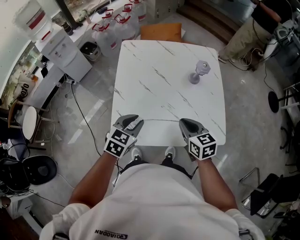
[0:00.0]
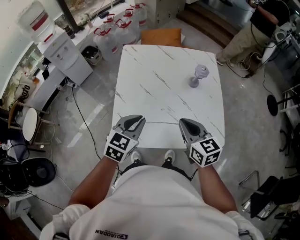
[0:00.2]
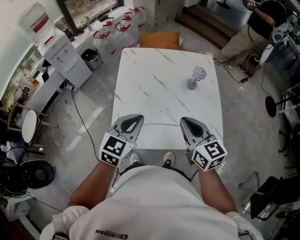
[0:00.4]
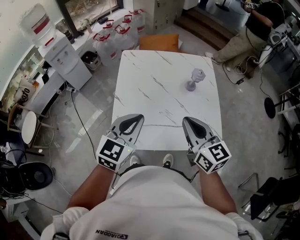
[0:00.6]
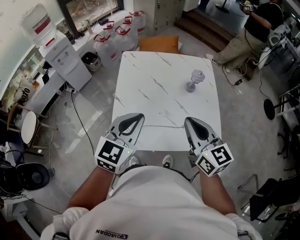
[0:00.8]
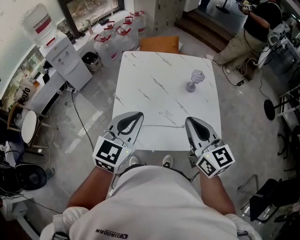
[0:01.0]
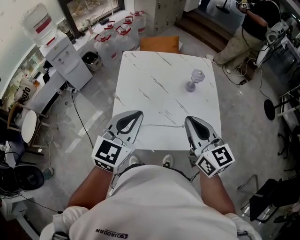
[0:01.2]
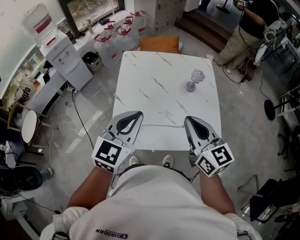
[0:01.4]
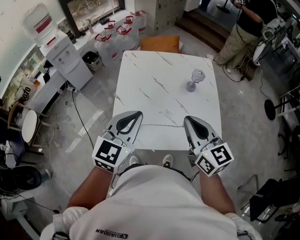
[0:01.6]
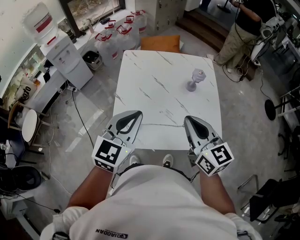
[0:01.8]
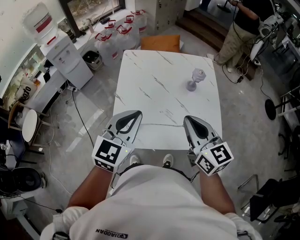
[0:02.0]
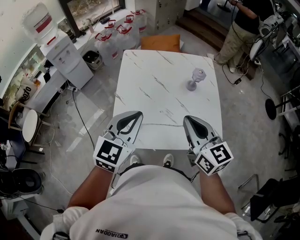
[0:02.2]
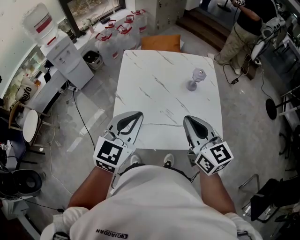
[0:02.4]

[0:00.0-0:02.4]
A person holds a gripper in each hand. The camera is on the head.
0:00.0 to 0:01.2: The grippers both shift upward by roughly 20 cm. The left gripper swivels roughly 30 degrees, and closes up; the right gripper rotates roughly 30 degrees.
0:01.2 to 0:02.4: There are only small adjustments of the grippers.

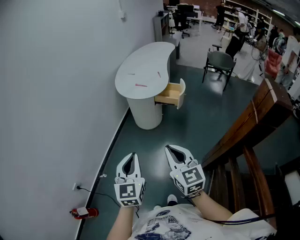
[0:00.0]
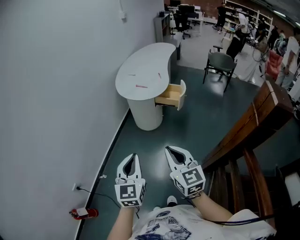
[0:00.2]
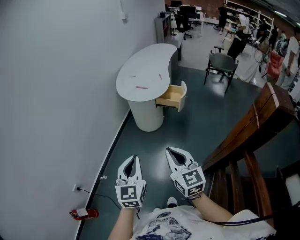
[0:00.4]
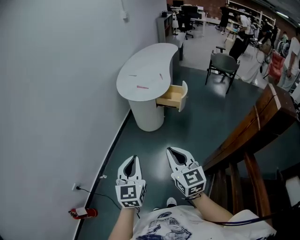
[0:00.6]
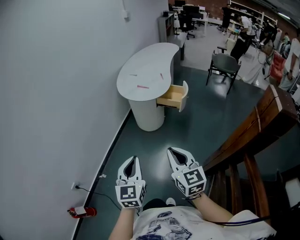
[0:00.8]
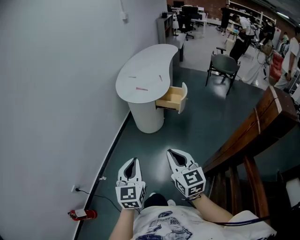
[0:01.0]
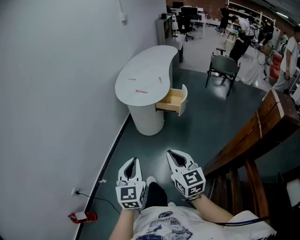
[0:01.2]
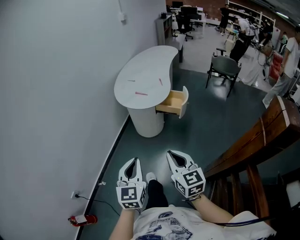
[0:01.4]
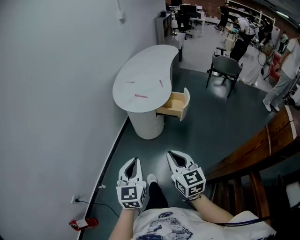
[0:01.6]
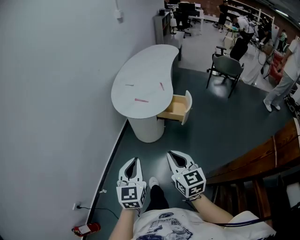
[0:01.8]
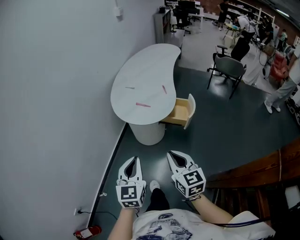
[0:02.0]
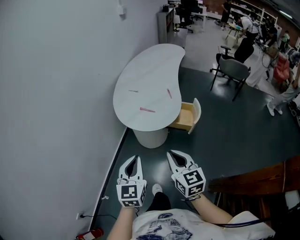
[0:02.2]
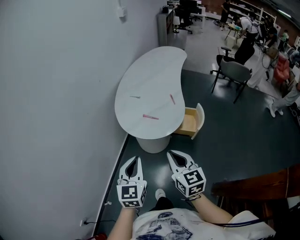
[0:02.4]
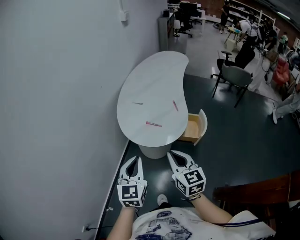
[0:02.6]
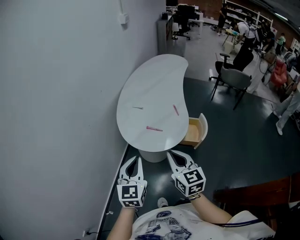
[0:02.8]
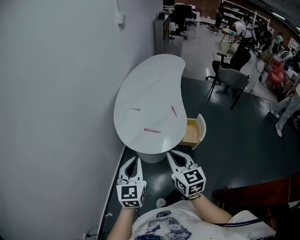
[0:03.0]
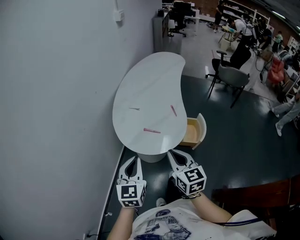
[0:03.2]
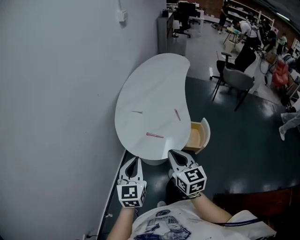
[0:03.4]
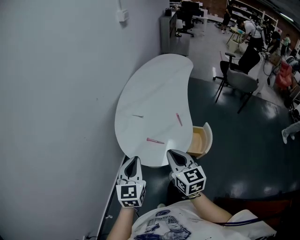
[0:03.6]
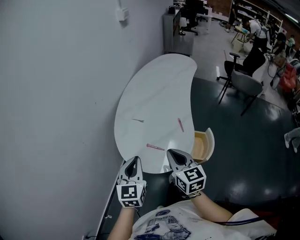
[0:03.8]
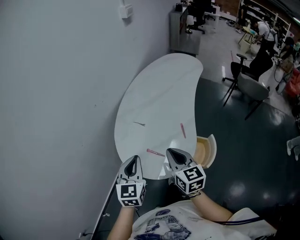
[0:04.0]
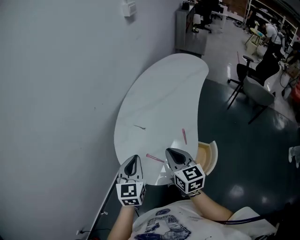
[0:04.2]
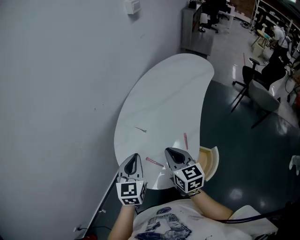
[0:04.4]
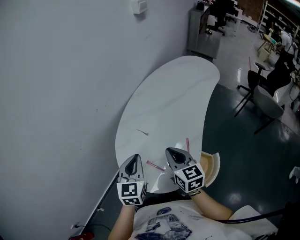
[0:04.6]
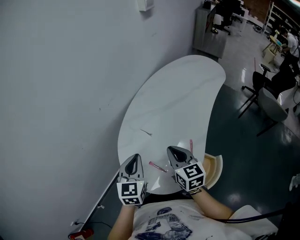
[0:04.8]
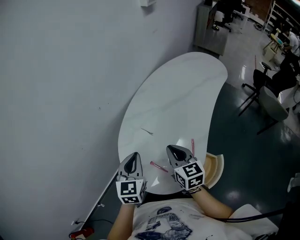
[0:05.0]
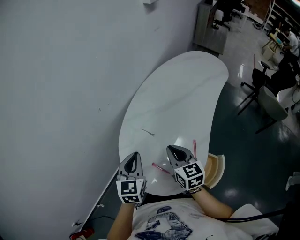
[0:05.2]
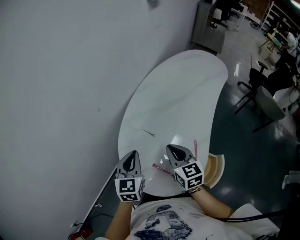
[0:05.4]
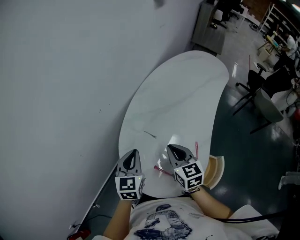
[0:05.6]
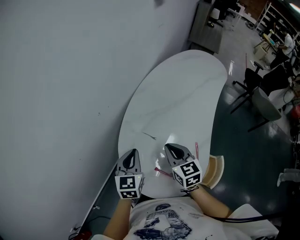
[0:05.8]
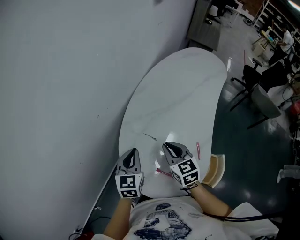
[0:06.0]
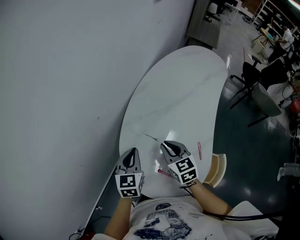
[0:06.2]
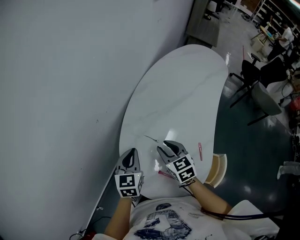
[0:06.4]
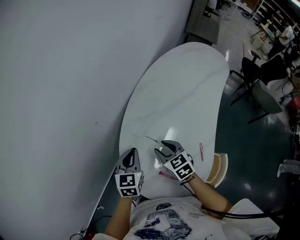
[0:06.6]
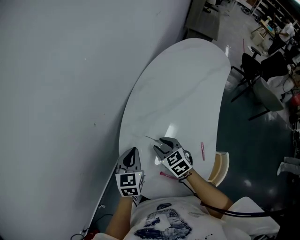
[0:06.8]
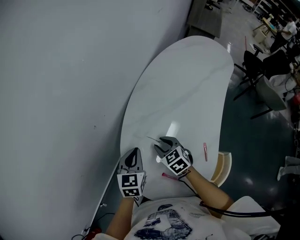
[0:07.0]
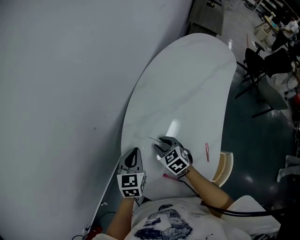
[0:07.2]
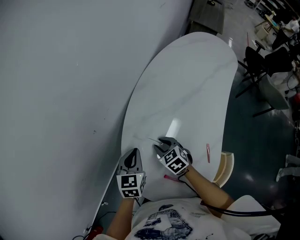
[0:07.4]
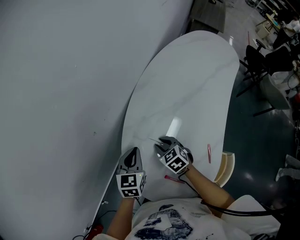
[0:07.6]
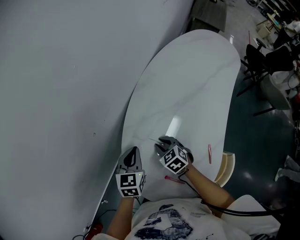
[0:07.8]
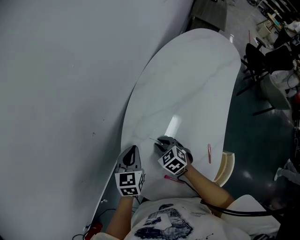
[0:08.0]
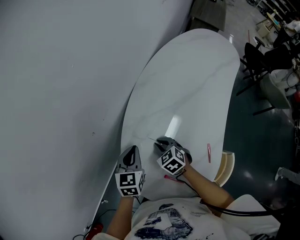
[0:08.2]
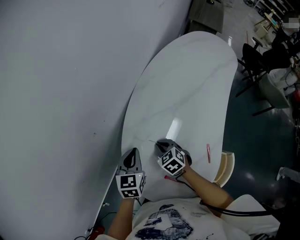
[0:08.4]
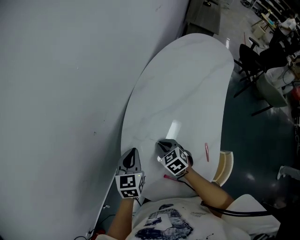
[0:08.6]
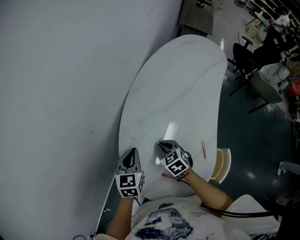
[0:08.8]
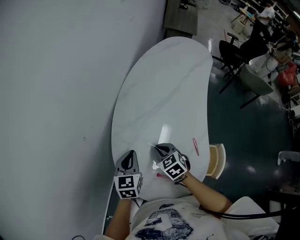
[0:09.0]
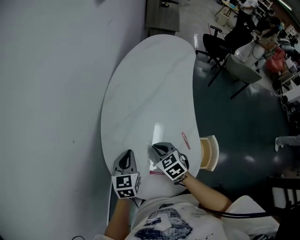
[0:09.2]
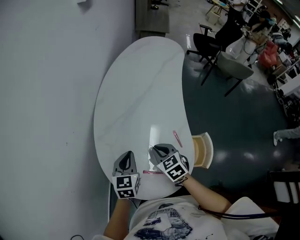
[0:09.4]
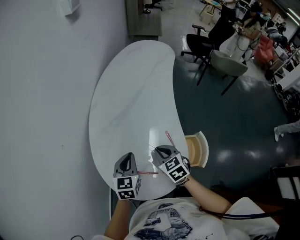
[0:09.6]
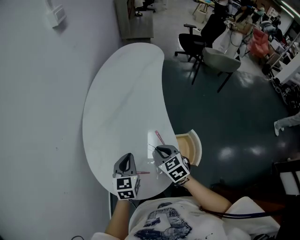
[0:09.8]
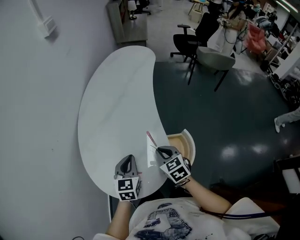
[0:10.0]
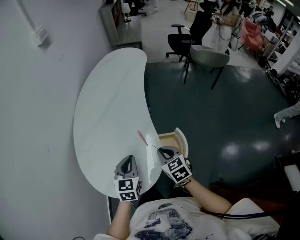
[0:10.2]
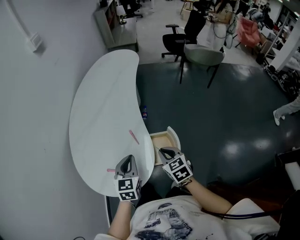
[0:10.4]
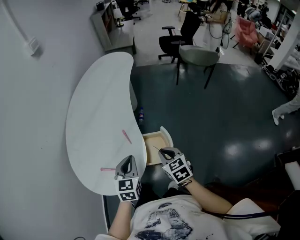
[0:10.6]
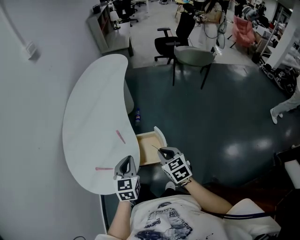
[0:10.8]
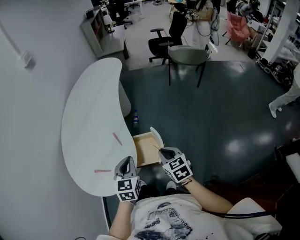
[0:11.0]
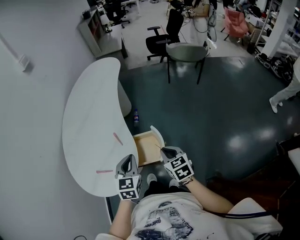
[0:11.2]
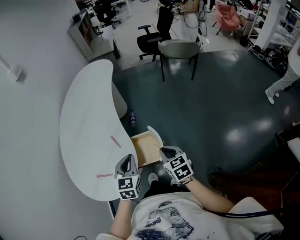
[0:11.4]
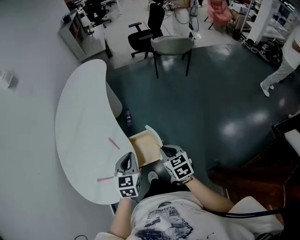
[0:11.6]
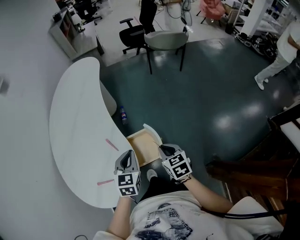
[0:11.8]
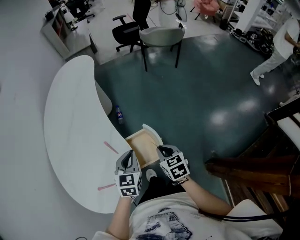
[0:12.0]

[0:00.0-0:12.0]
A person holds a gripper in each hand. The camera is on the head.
0:00.0 to 0:01.6: The grippers both shift forward by about 15 cm.
0:01.6 to 0:03.0: Both grippers move forward, about 35 cm.
0:03.0 to 0:04.4: Both grippers travel together forward, roughly 25 cm.
0:04.4 to 0:06.0: The right gripper heads forward, to the left and downward, covering about 15 cm, while the left gripper heads forward, downward and to the left, covering approximately 20 cm.
0:06.0 to 0:07.6: The left gripper is displaced downward and forward by approximately 10 cm. Meanwhile the right gripper heads downward and forward, covering approximately 20 cm, turns by approximately 30 degrees, and opens up.
0:07.6 to 0:09.0: The left gripper changes place by approximately 5 cm, while the right gripper moves upward and backward, roughly 10 cm, and closes up.
0:09.0 to 0:10.4: The two grippers go some 35 cm to the right and backward. The right gripper changes its angle by roughly 30 degrees.
0:10.4 to 0:12.0: The grippers both shift to the right and downward by approximately 15 cm. The right gripper turns by some 30 degrees. Meanwhile the left gripper changes its angle by approximately 20 degrees.

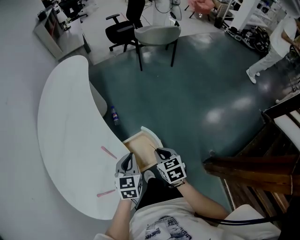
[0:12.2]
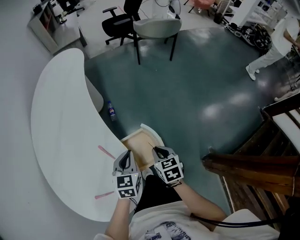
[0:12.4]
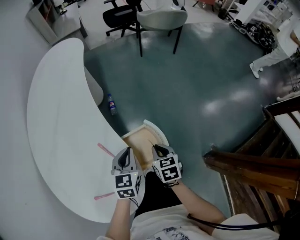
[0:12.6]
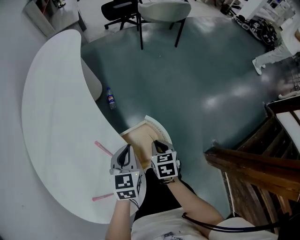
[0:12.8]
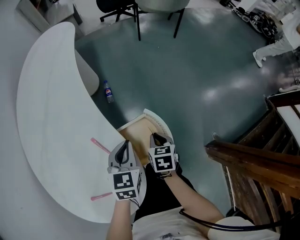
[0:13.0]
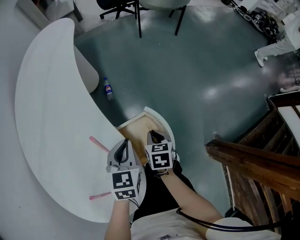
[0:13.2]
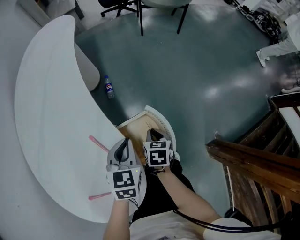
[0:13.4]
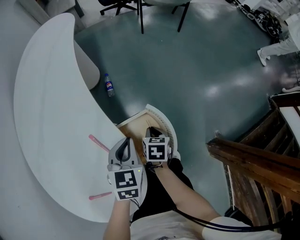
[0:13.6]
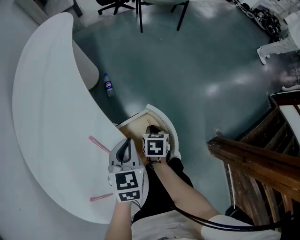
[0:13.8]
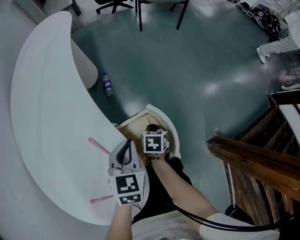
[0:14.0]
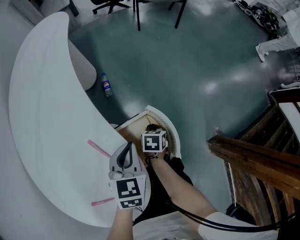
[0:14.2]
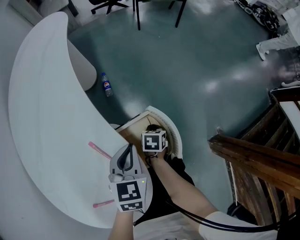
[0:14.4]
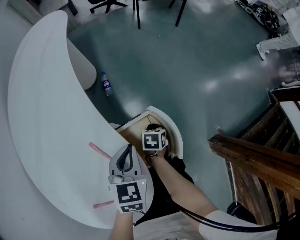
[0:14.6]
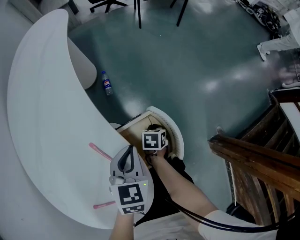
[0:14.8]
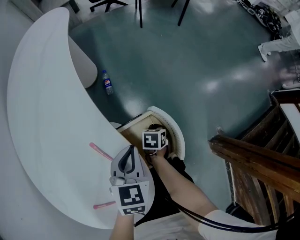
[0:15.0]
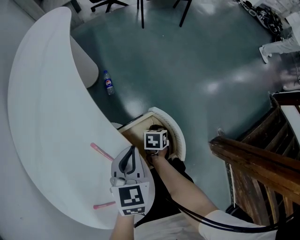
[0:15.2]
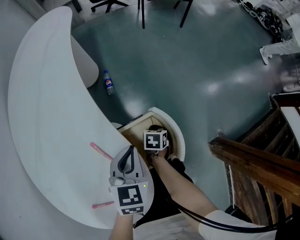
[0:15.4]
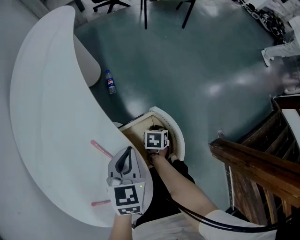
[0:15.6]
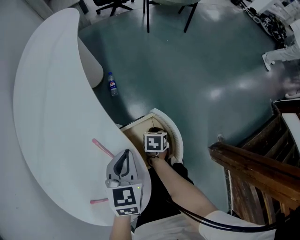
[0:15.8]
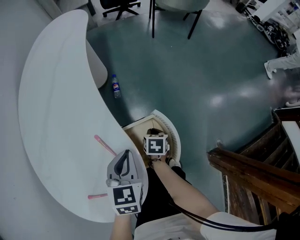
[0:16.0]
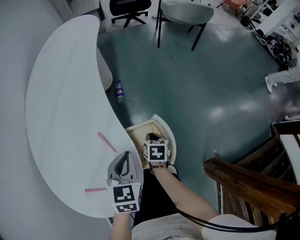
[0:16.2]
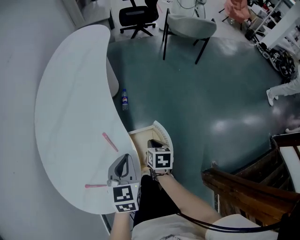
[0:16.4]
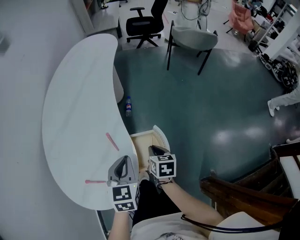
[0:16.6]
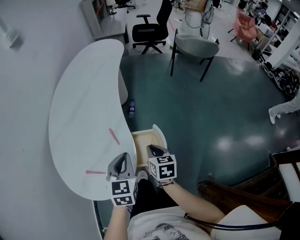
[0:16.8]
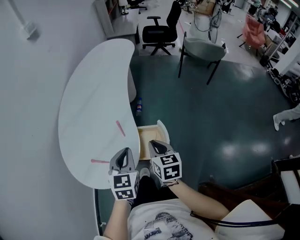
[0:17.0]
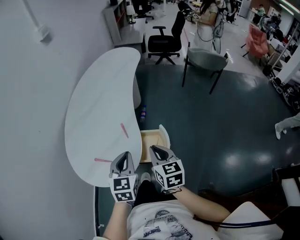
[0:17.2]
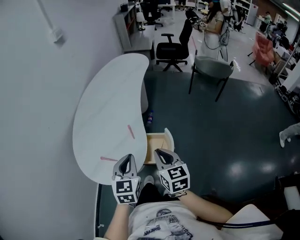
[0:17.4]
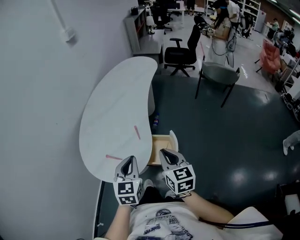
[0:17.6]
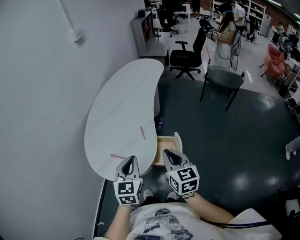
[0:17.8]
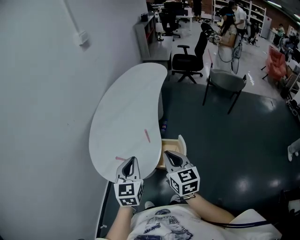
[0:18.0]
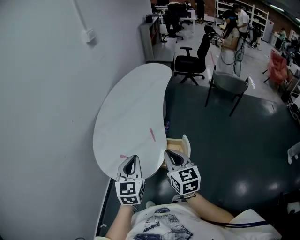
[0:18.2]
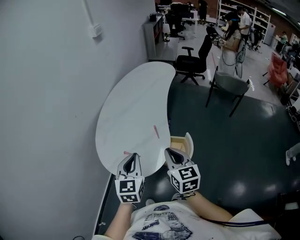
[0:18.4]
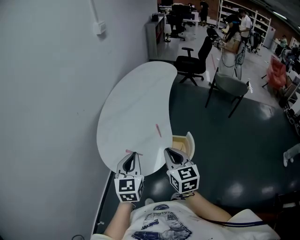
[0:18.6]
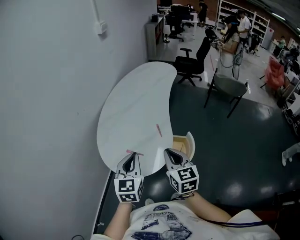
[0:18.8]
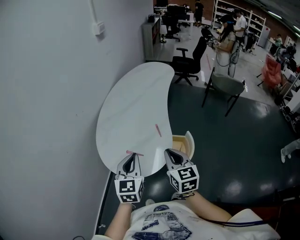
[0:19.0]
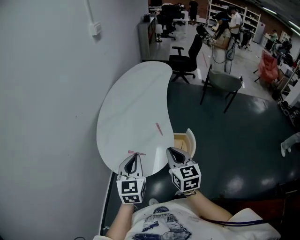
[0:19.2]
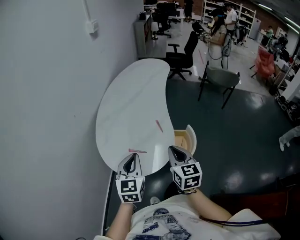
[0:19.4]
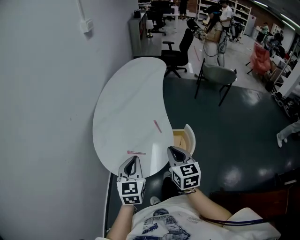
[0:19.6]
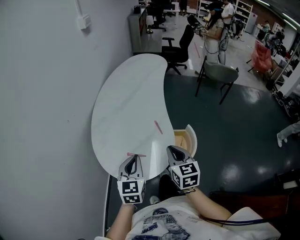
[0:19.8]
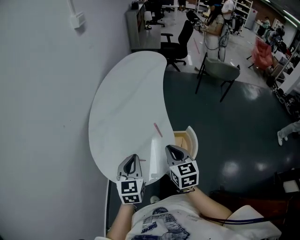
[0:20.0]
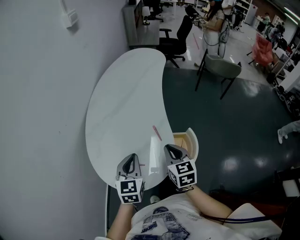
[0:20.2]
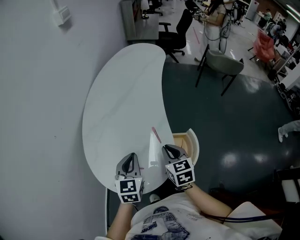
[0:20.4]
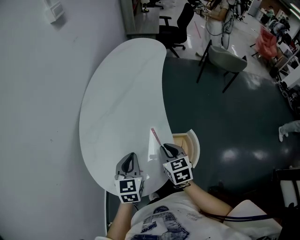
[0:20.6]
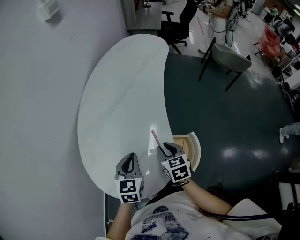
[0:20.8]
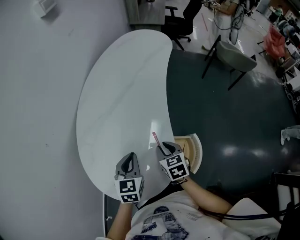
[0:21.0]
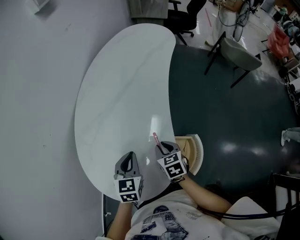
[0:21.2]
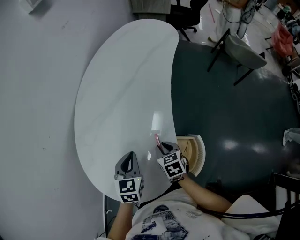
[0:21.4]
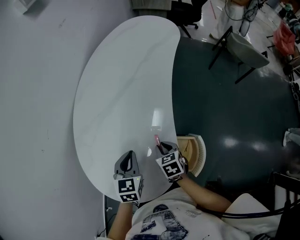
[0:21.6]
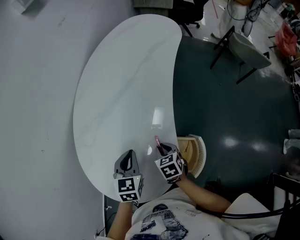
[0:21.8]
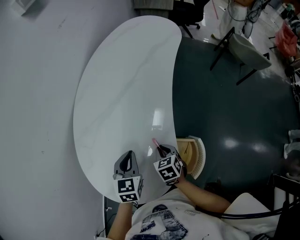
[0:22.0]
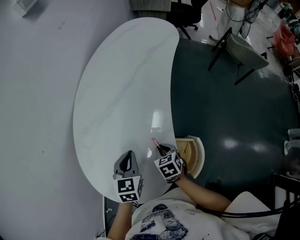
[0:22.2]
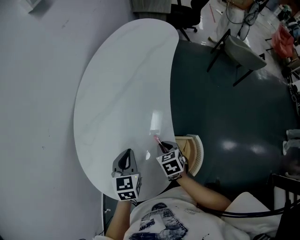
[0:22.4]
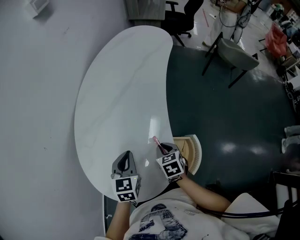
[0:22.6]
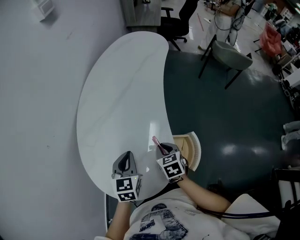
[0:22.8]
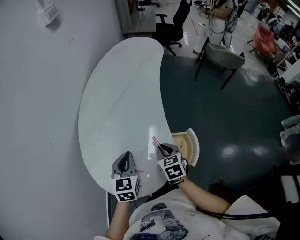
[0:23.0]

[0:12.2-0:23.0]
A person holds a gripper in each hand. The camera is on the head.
0:12.2 to 0:13.8: The left gripper goes some 10 cm downward; the right gripper goes some 20 cm downward, and changes its angle by approximately 30 degrees.
0:13.8 to 0:15.2: The right gripper moves downward, roughly 10 cm.
0:15.2 to 0:16.8: The left gripper moves upward, approximately 15 cm, and turns by some 30 degrees. The right gripper travels upward by about 30 cm, and angles its fingers upward, by approximately 30 degrees.
0:16.8 to 0:18.4: Both grippers travel together upward, to the left and backward, roughly 25 cm. The right gripper changes its angle by some 30 degrees; the left gripper changes its angle by approximately 20 degrees.
0:18.4 to 0:20.0: Both grippers move forward, downward and to the left, some 10 cm.
0:20.0 to 0:21.4: The left gripper moves forward and downward, roughly 25 cm; the right gripper shifts roughly 30 cm downward and forward, and changes its angle by approximately 30 degrees.
0:21.4 to 0:23.0: Both grippers travel together upward and backward, some 10 cm.
